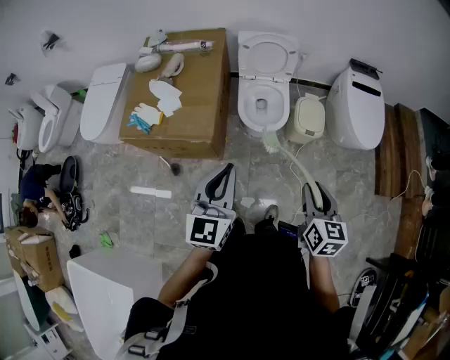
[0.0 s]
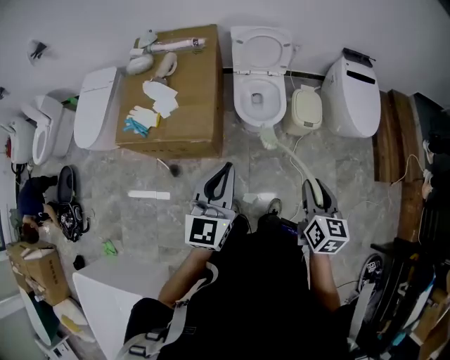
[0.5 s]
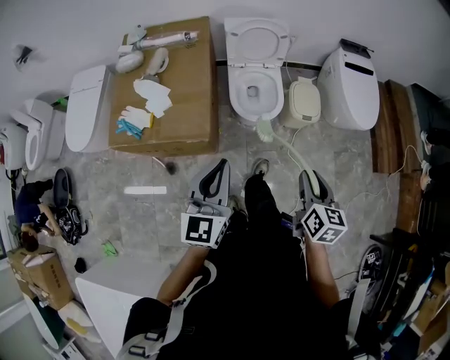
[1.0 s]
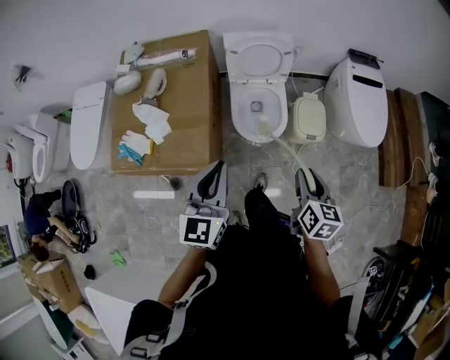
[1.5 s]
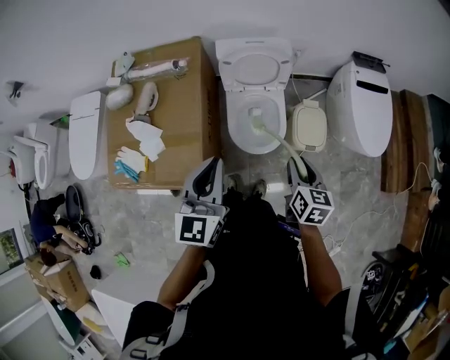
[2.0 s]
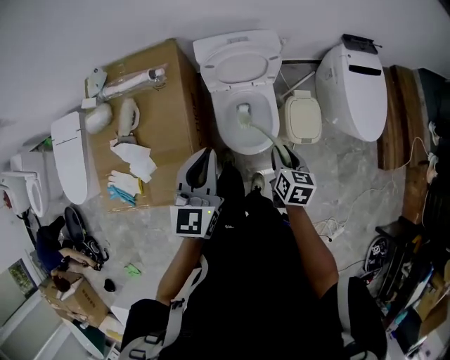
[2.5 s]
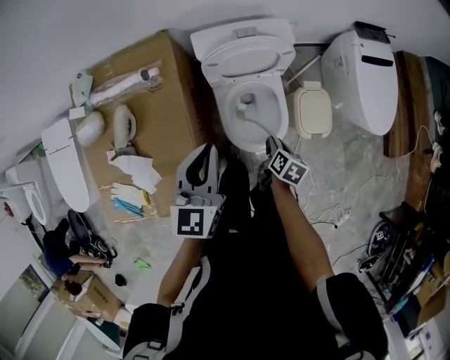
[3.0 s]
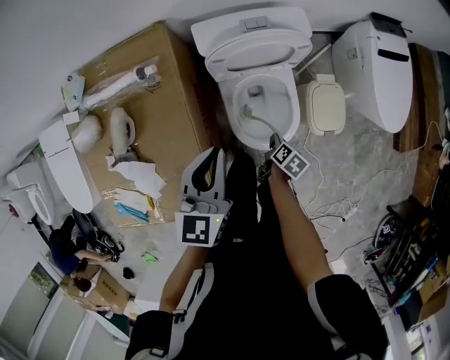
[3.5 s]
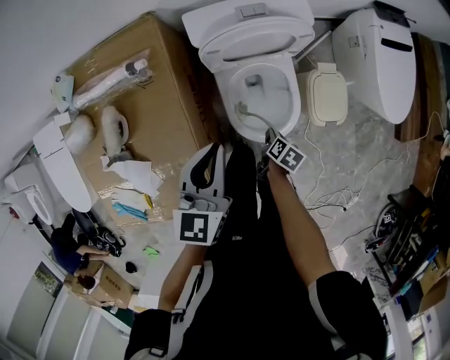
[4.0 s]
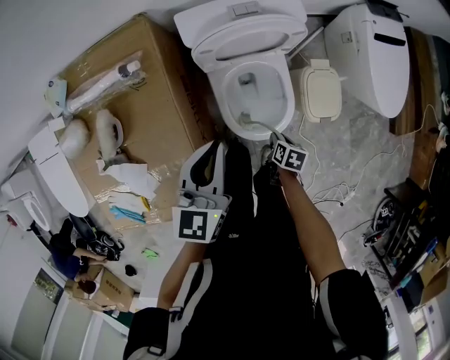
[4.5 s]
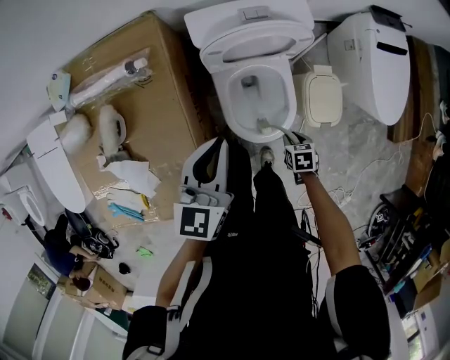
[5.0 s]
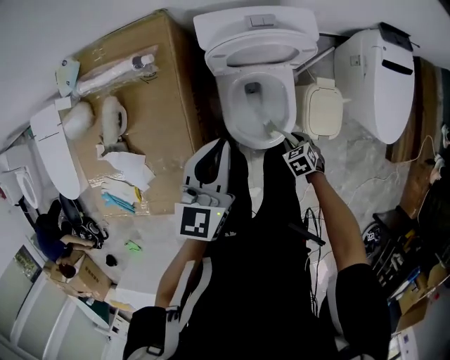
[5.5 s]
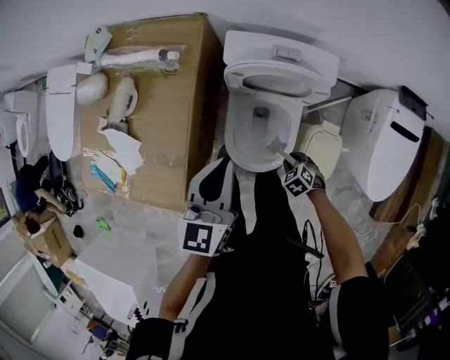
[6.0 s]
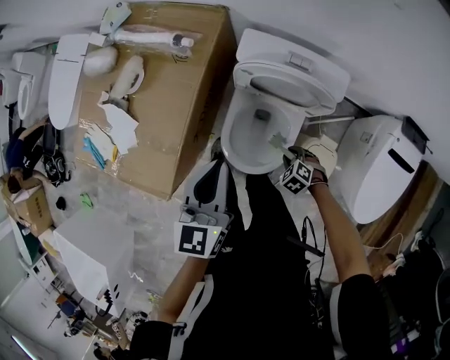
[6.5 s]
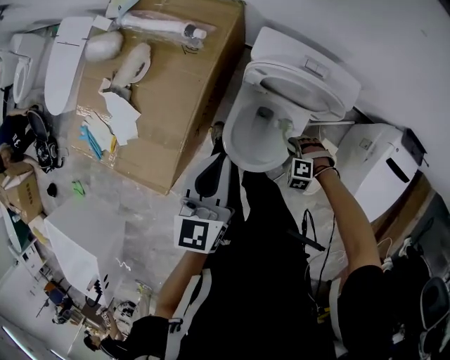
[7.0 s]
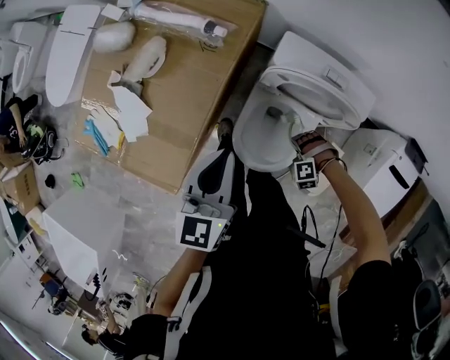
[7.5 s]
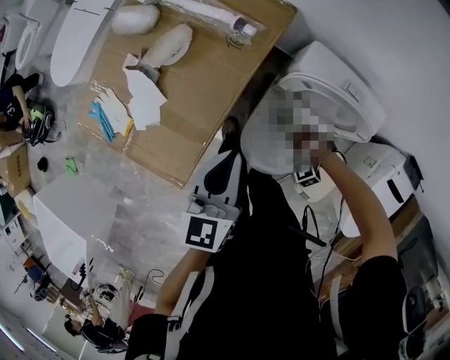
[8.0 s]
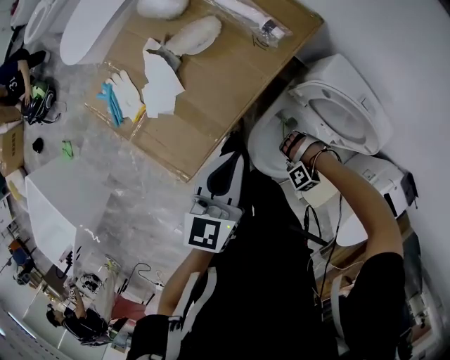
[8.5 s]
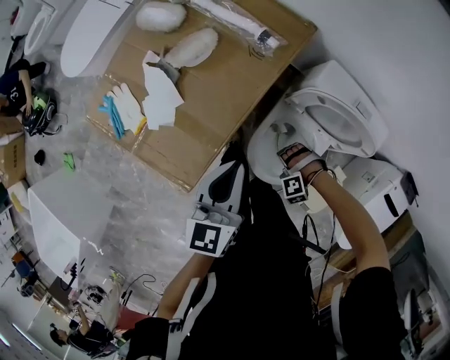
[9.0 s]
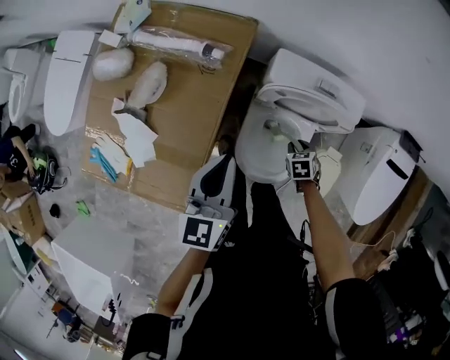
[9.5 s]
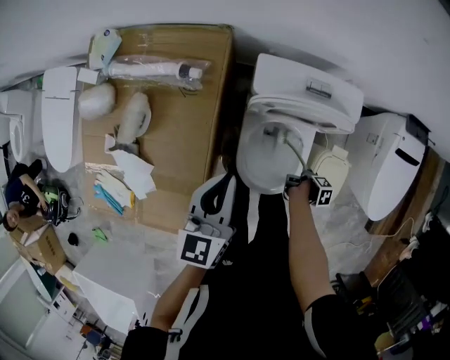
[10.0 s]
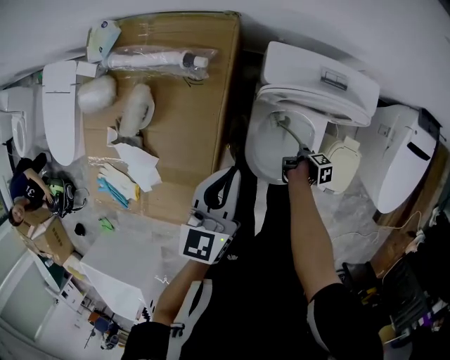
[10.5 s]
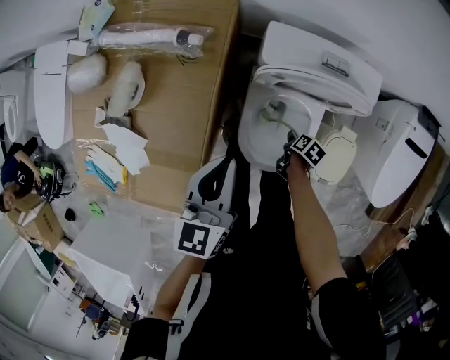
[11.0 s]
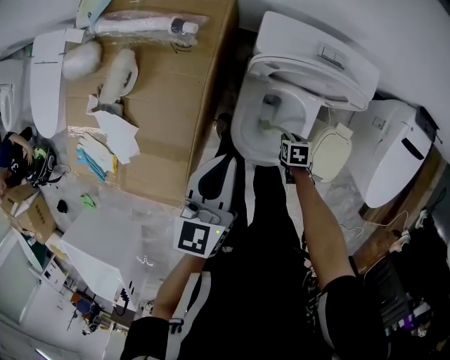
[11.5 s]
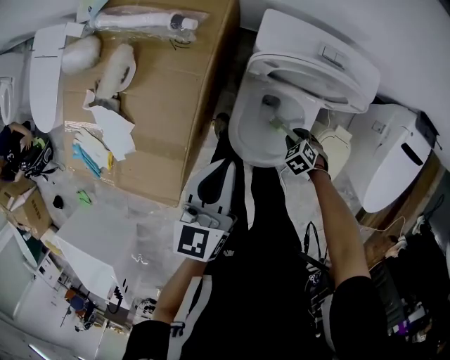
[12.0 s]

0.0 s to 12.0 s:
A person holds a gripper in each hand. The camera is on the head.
0.0 to 2.0 s: Both grippers travel together forward, approximately 30 cm.
2.0 to 4.0 s: The right gripper shifts about 35 cm downward, and tips its fingers downward by roughly 30 degrees; the left gripper shifts about 30 cm forward and downward.
4.0 to 6.0 s: The left gripper shifts by roughly 5 cm, and changes its angle by about 20 degrees. The right gripper changes place by about 10 cm, and rotates around the line of its fingers by some 100 degrees, counterclockwise from behind.
6.0 to 8.0 s: The right gripper shifts by some 15 cm, and rotates around the line of its fingers by approximately 110 degrees, counterclockwise from behind; the left gripper shifts by some 15 cm.
8.0 to 10.0 s: The right gripper shifts by roughly 15 cm, and rotates around the line of its fingers by approximately 110 degrees, counterclockwise from behind; the left gripper changes place by some 10 cm, and rotates roughly 20 degrees.
10.0 to 12.0 s: The left gripper changes place by approximately 5 cm; the right gripper changes place by some 10 cm, and rotates around the line of its fingers by some 150 degrees, counterclockwise from behind.

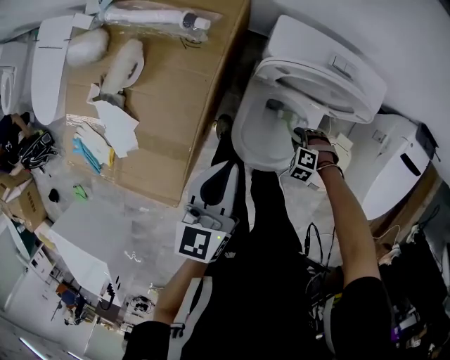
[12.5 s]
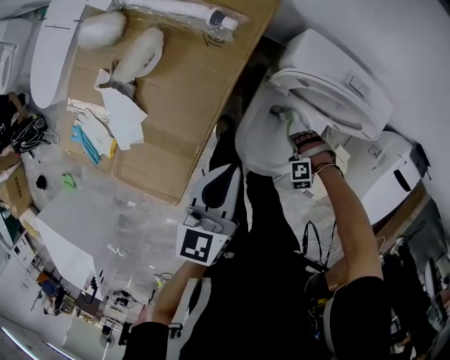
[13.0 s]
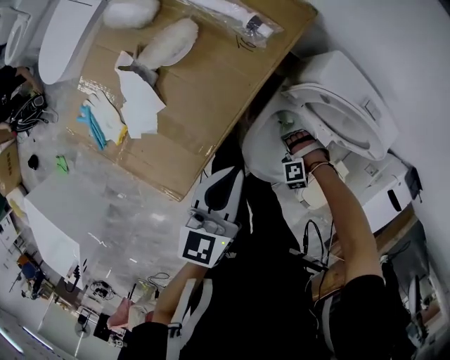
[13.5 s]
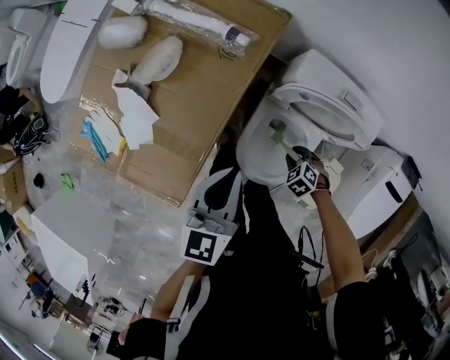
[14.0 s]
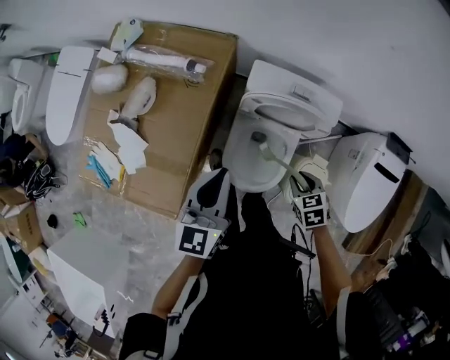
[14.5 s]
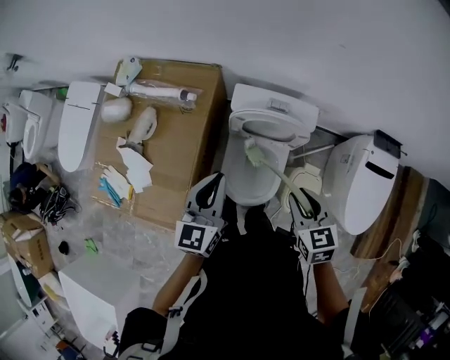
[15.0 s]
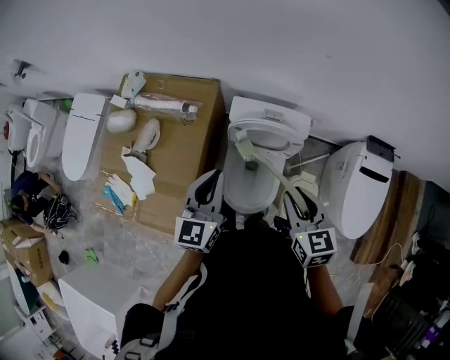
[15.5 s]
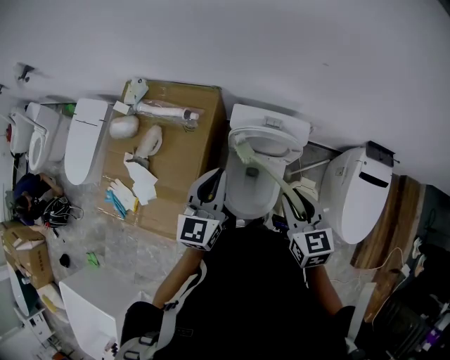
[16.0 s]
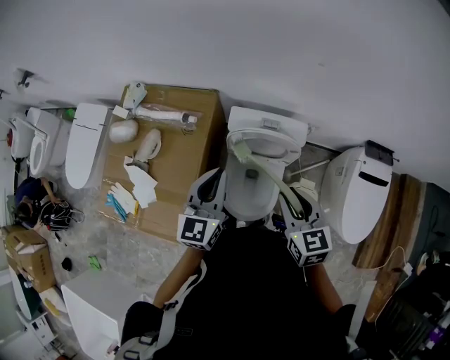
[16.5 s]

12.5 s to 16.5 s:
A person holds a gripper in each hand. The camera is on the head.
12.5 to 14.5 s: The left gripper goes about 10 cm upward; the right gripper travels upward by approximately 25 cm, and twists roughly 60 degrees clockwise, seen from behind.
14.5 to 16.5 s: The left gripper shifts approximately 10 cm upward; the right gripper travels upward by some 30 cm, and points its fingers about 30 degrees further upward.

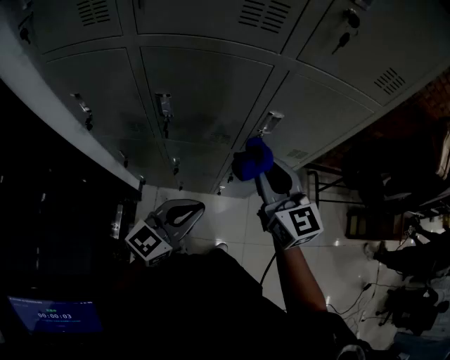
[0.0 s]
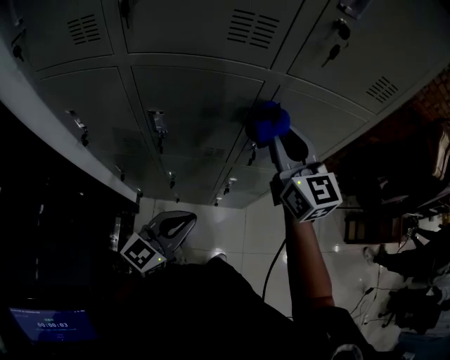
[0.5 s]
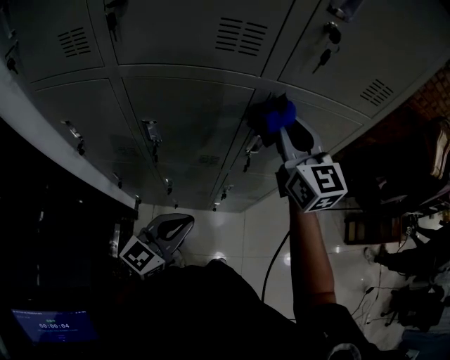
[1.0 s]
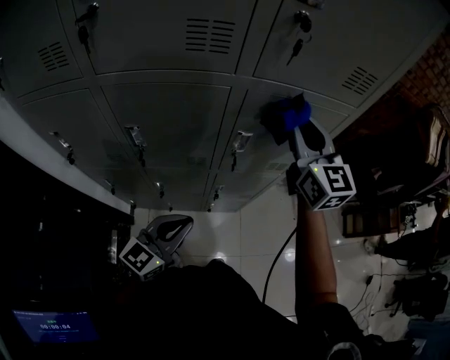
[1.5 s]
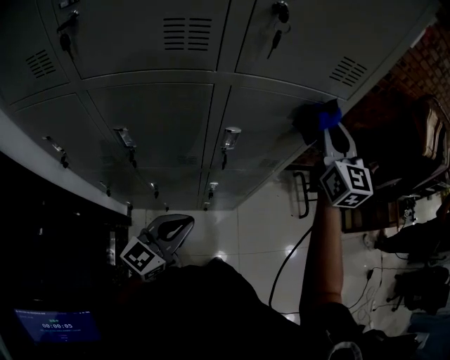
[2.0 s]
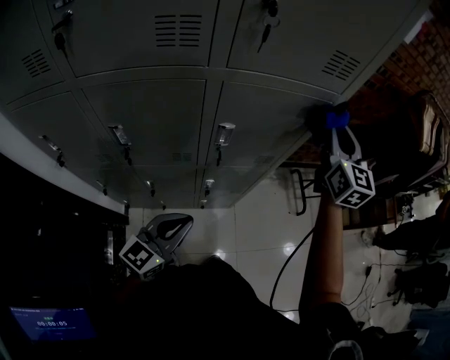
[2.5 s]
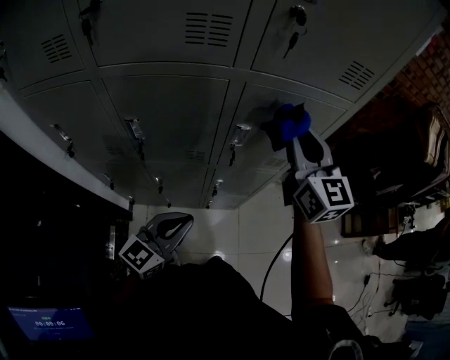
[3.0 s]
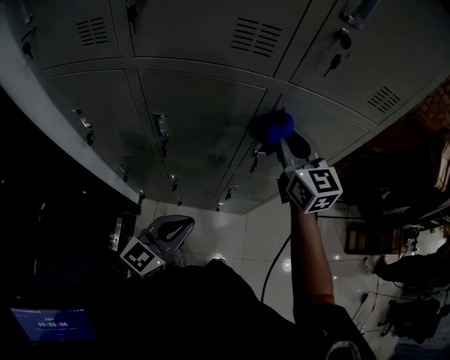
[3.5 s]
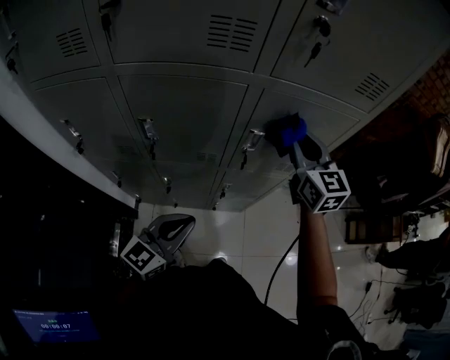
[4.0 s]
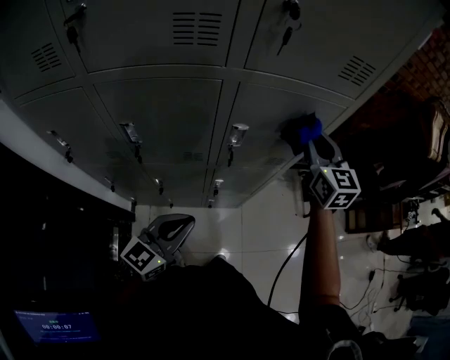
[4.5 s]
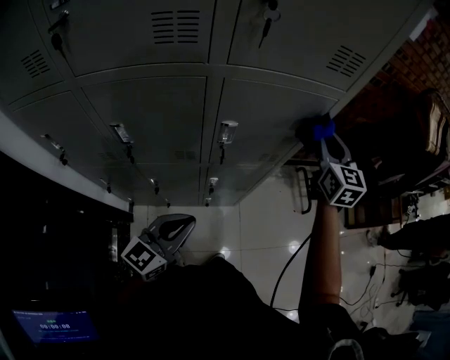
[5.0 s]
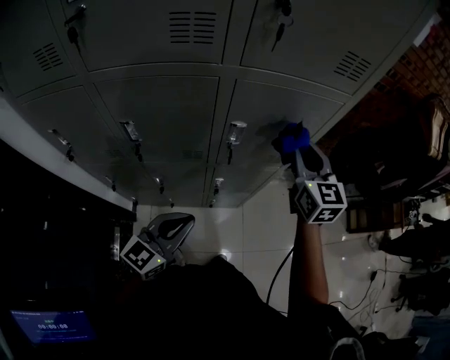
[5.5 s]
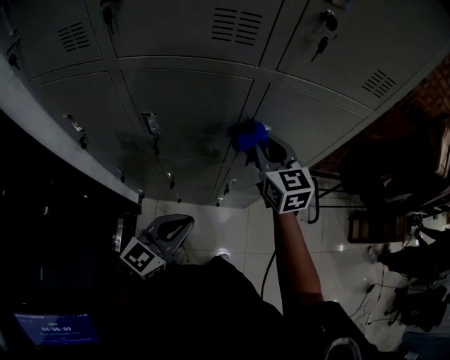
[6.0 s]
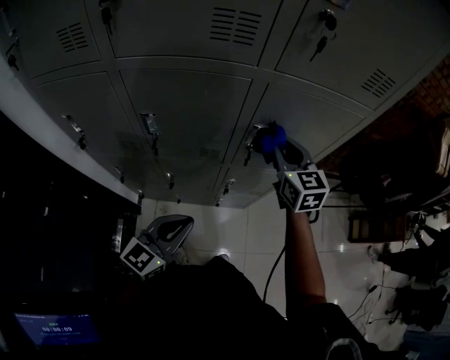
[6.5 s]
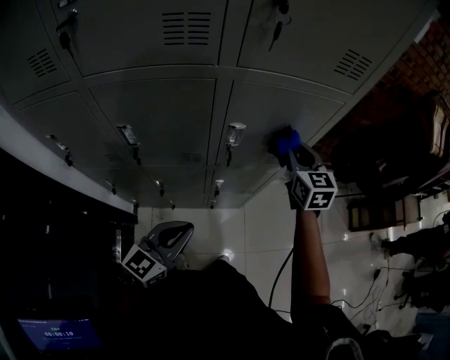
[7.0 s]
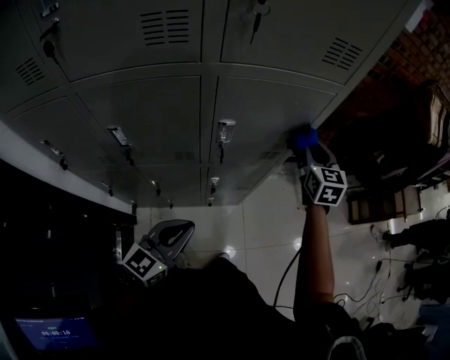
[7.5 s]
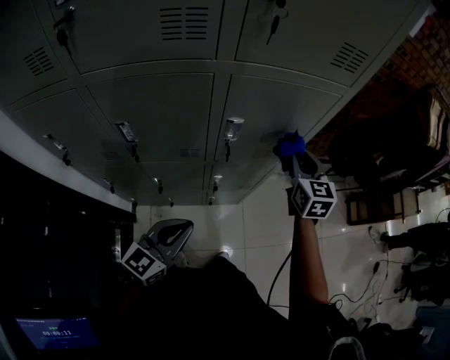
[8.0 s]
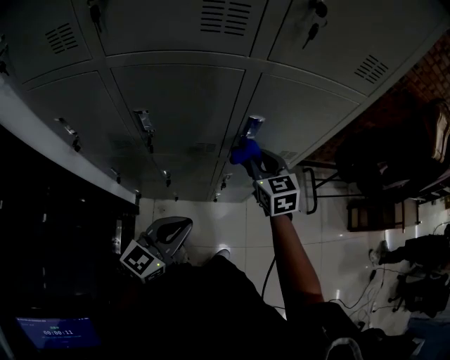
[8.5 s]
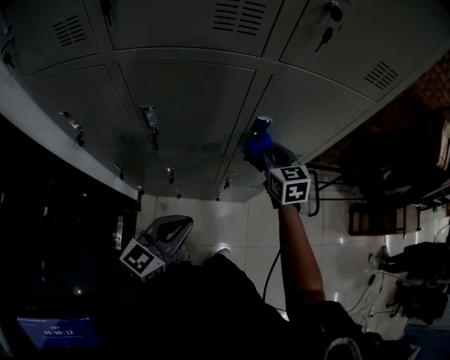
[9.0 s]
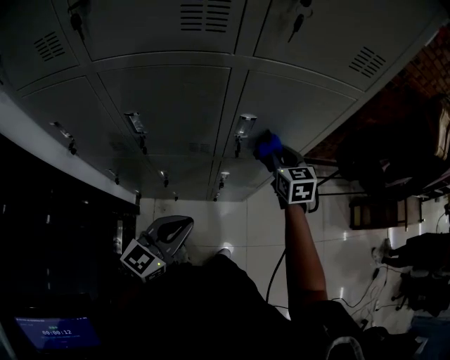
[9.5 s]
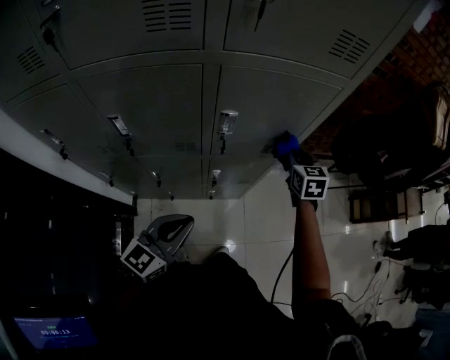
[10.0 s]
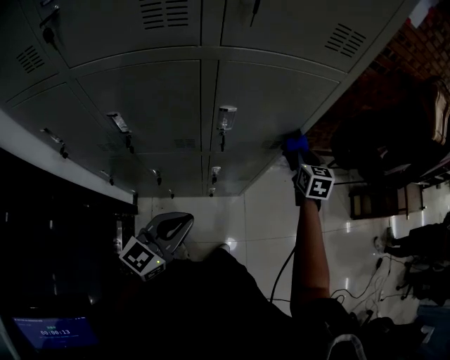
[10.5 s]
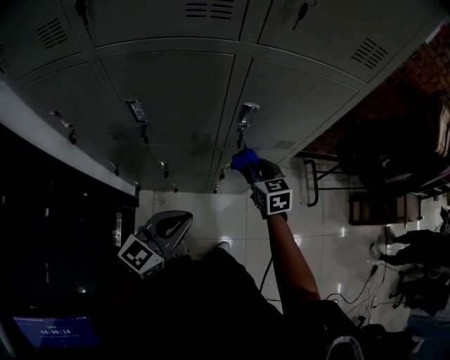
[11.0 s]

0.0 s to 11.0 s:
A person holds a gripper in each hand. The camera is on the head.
0.0 to 2.0 s: The left gripper changes place by some 5 cm; the right gripper goes about 30 cm to the right, forward and upward, and rotates roughly 30 degrees.
2.0 to 3.5 s: The right gripper heads to the left, covering roughly 20 cm, and changes its angle by approximately 20 degrees. Meanwhile the left gripper moves to the left, some 5 cm.
3.5 to 5.5 s: The right gripper goes roughly 15 cm to the right. The left gripper heads to the right, covering roughly 5 cm.
5.5 to 7.5 s: The right gripper heads to the right, downward and forward, covering approximately 15 cm.
7.5 to 9.0 s: The left gripper moves to the left, approximately 5 cm. The right gripper heads to the left, covering approximately 20 cm, and swivels roughly 20 degrees.
9.0 to 11.0 s: The right gripper goes approximately 10 cm downward and backward, and goes to the right and returns, about 20 cm each way.
